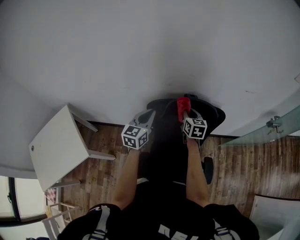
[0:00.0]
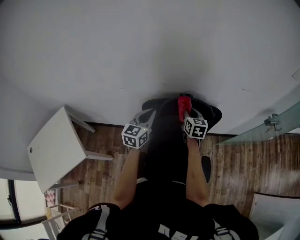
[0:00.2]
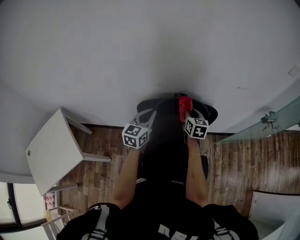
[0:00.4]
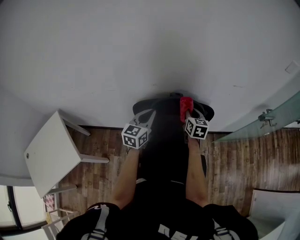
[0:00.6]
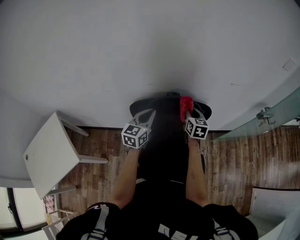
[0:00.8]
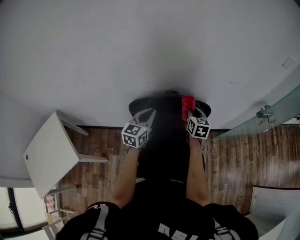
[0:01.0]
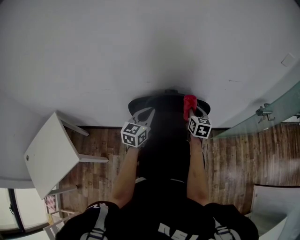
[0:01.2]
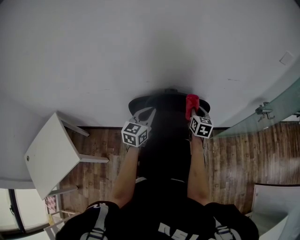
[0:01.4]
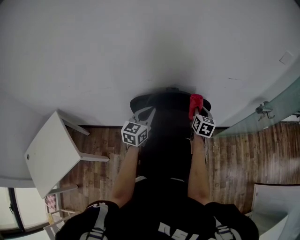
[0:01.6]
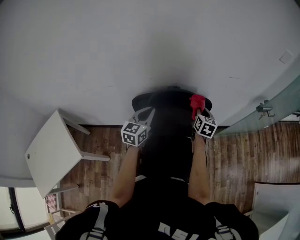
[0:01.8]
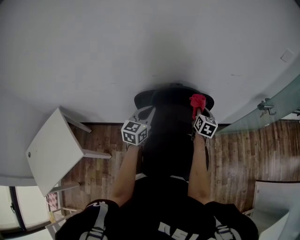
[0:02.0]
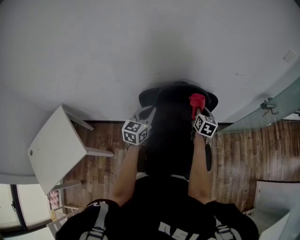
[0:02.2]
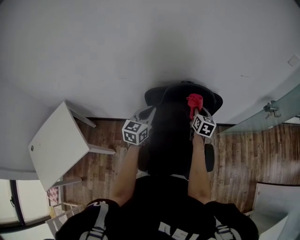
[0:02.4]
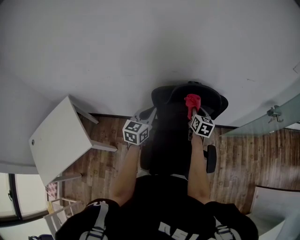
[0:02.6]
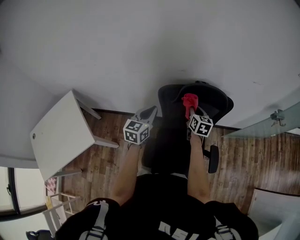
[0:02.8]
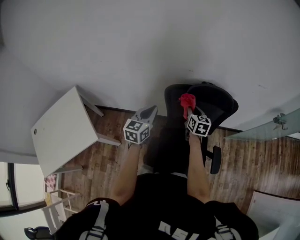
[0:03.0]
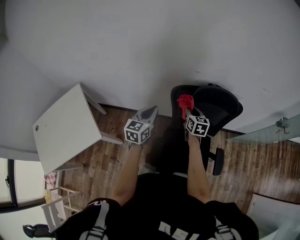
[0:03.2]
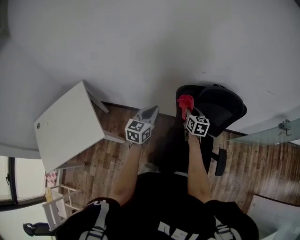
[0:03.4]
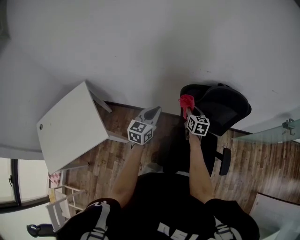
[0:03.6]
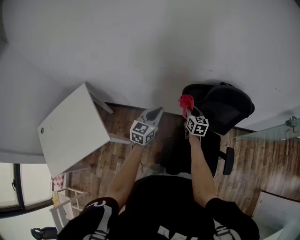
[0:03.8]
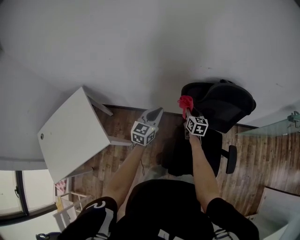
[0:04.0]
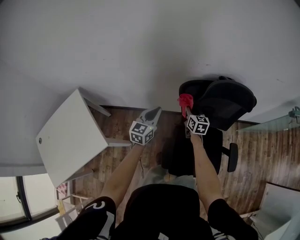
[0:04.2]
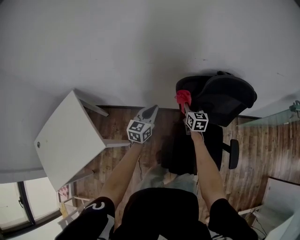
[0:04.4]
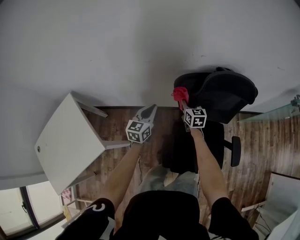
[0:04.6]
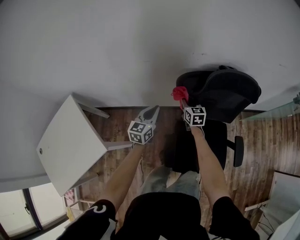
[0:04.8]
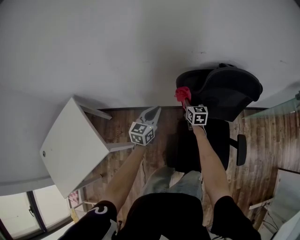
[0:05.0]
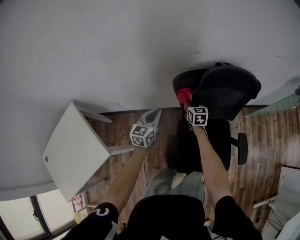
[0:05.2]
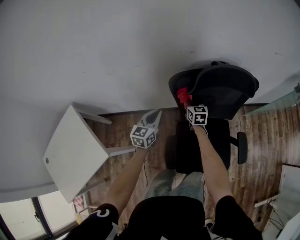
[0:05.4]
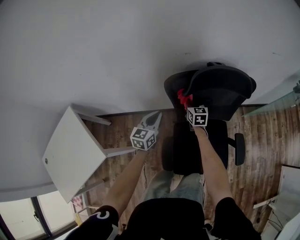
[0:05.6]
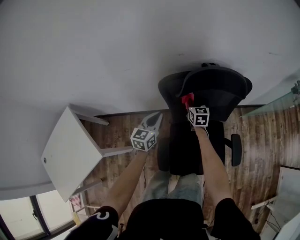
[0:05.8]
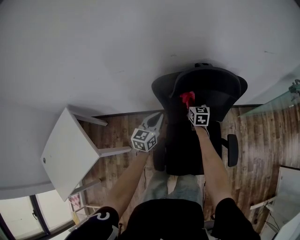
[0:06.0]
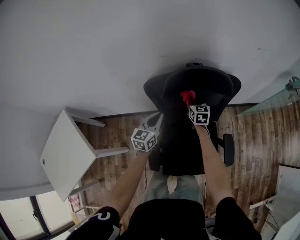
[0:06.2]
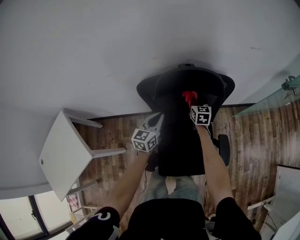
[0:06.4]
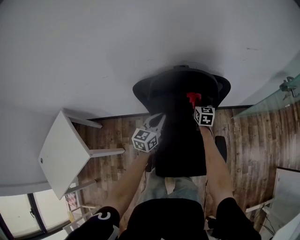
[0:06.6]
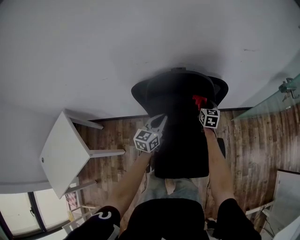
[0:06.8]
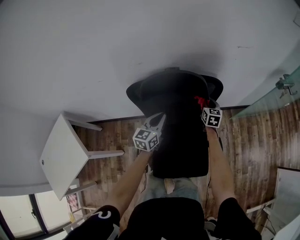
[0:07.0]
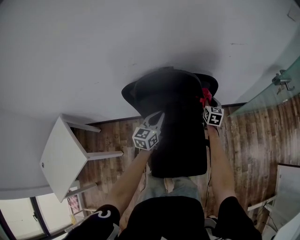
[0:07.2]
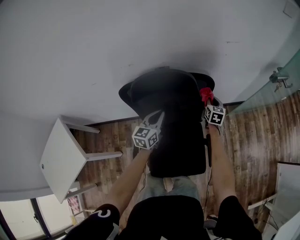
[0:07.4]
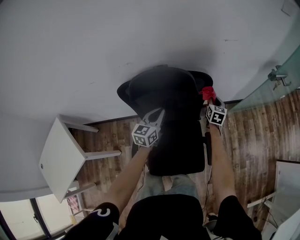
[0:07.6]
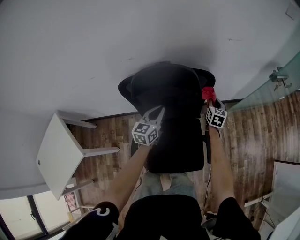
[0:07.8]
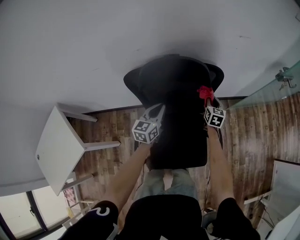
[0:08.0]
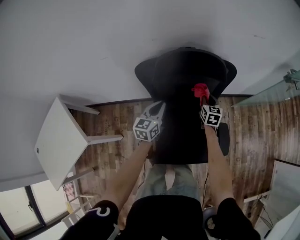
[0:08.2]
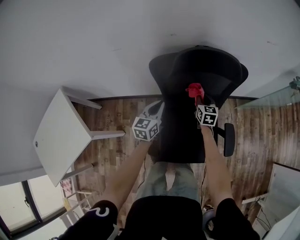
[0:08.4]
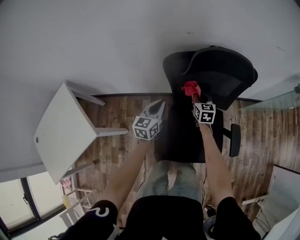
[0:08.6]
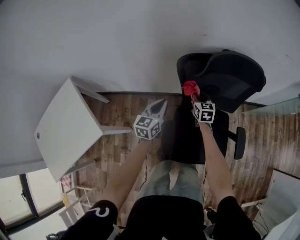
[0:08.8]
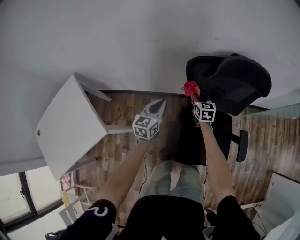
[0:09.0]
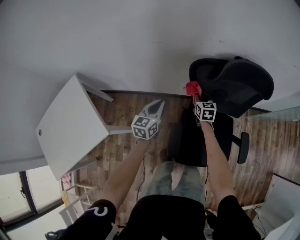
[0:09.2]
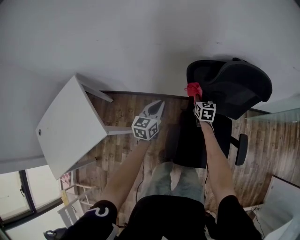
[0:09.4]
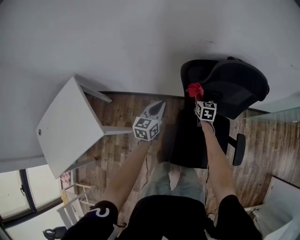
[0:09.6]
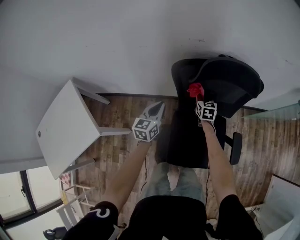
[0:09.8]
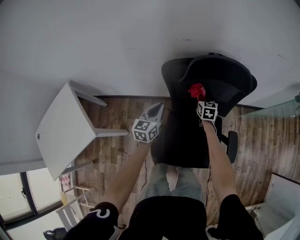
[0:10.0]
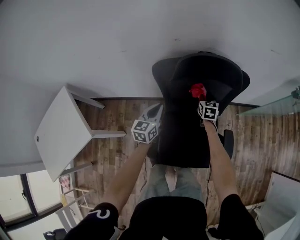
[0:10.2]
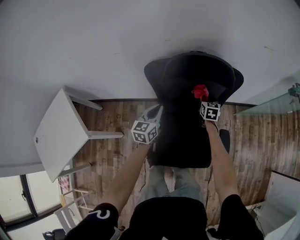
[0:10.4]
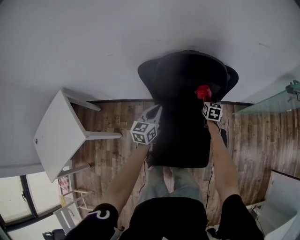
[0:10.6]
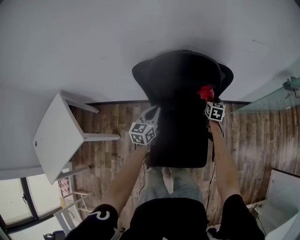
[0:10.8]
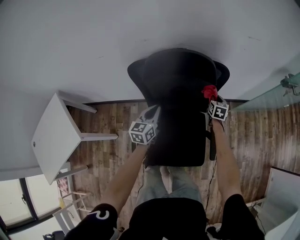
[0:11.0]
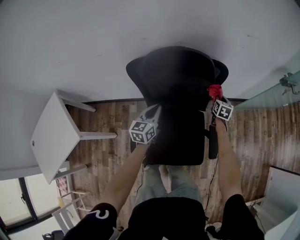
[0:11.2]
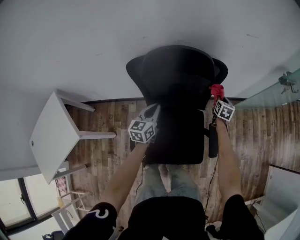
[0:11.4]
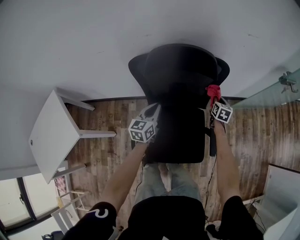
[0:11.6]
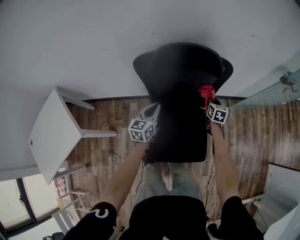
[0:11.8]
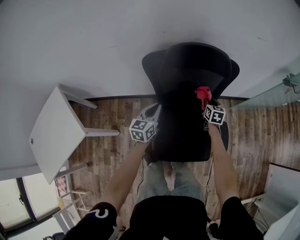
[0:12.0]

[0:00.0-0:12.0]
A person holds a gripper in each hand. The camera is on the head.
0:00.0 to 0:01.6: The left gripper moves to the right, roughly 10 cm. The right gripper heads to the right, covering some 15 cm.
0:01.6 to 0:03.0: The grippers both shift to the left and backward by some 20 cm.
0:03.0 to 0:04.4: Both grippers move downward and to the left, about 15 cm.
0:04.4 to 0:06.0: The two grippers go about 15 cm to the right.
0:06.0 to 0:07.6: The right gripper is displaced to the right by approximately 35 cm, while the left gripper goes approximately 20 cm to the right.
0:07.6 to 0:09.0: Both grippers travel together to the left, roughly 40 cm. The right gripper rotates approximately 30 degrees.
0:09.0 to 0:10.4: The two grippers go some 20 cm to the right.
0:10.4 to 0:12.0: The left gripper reaches about 10 cm to the right, then returns. The right gripper heads backward, covering about 5 cm, and moves roughly 20 cm to the right and comes back.

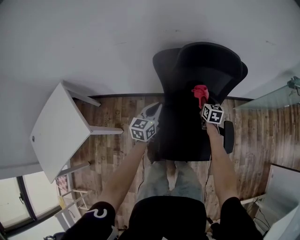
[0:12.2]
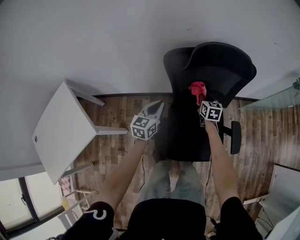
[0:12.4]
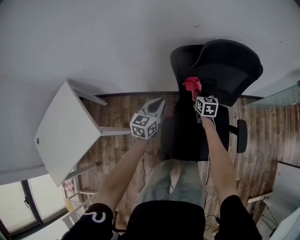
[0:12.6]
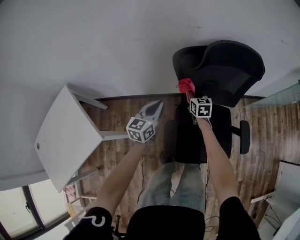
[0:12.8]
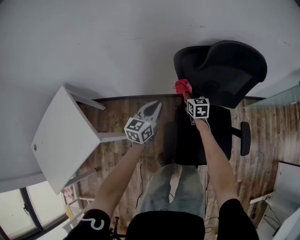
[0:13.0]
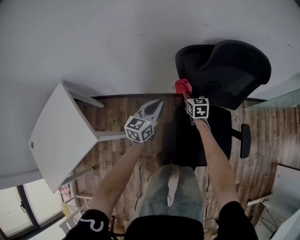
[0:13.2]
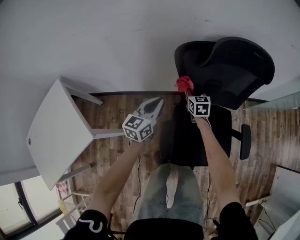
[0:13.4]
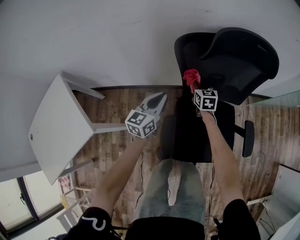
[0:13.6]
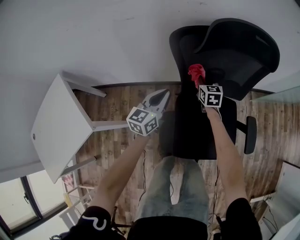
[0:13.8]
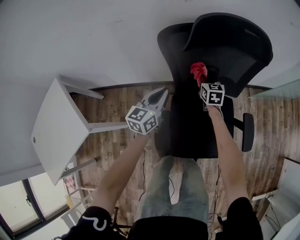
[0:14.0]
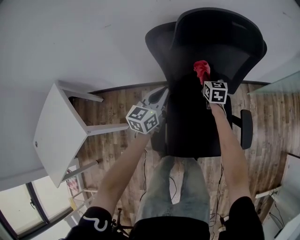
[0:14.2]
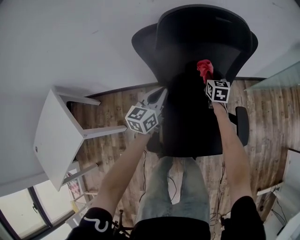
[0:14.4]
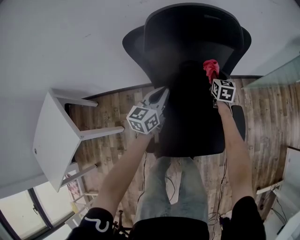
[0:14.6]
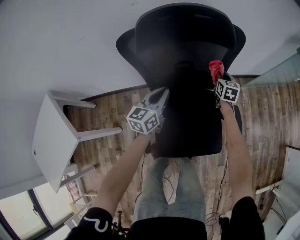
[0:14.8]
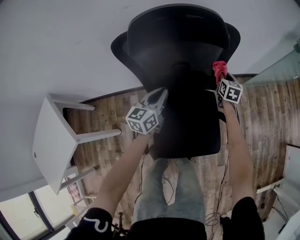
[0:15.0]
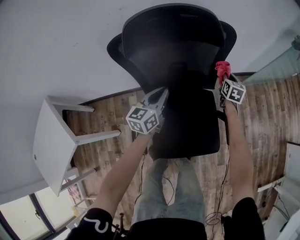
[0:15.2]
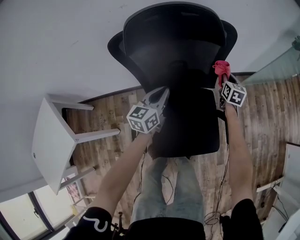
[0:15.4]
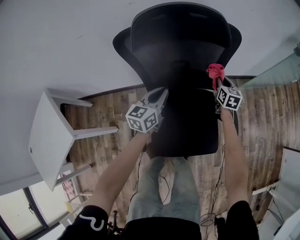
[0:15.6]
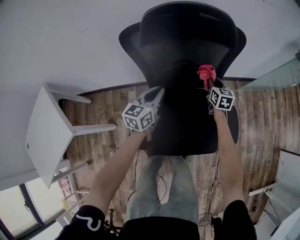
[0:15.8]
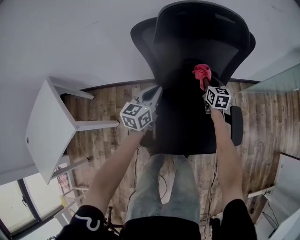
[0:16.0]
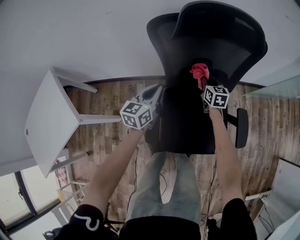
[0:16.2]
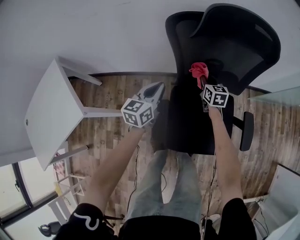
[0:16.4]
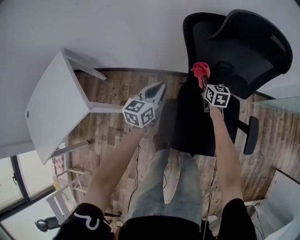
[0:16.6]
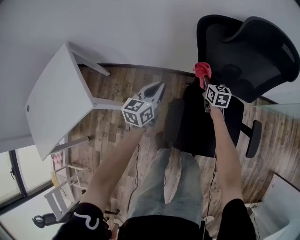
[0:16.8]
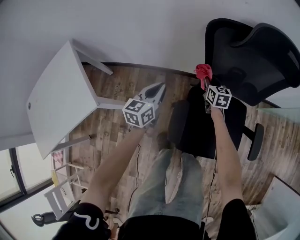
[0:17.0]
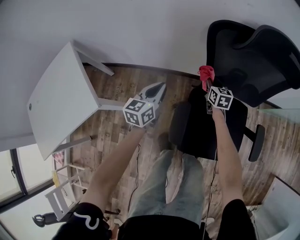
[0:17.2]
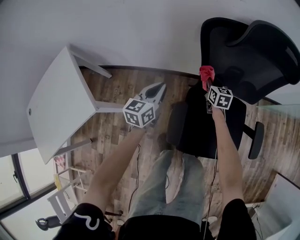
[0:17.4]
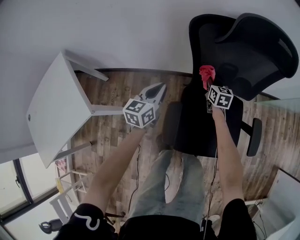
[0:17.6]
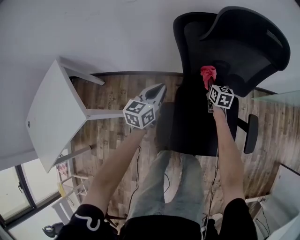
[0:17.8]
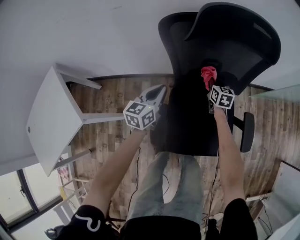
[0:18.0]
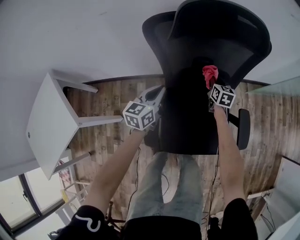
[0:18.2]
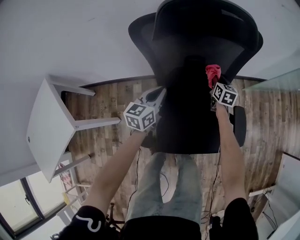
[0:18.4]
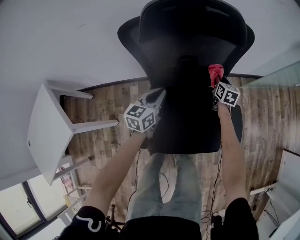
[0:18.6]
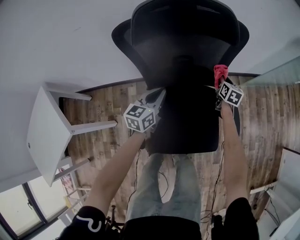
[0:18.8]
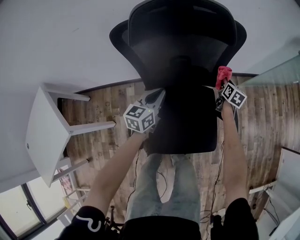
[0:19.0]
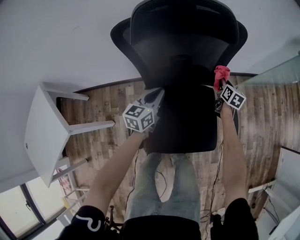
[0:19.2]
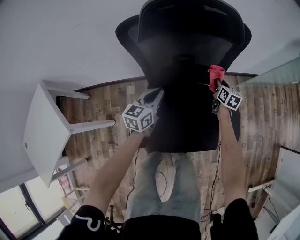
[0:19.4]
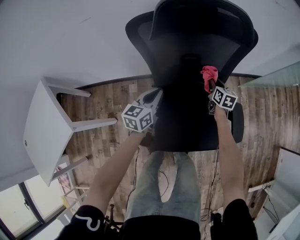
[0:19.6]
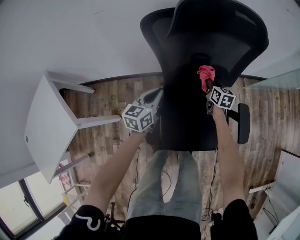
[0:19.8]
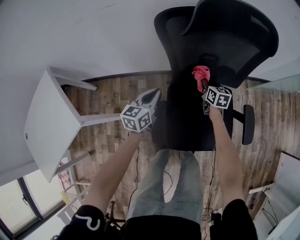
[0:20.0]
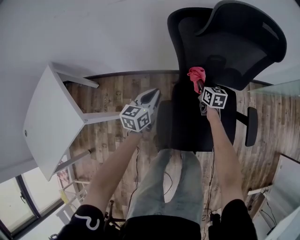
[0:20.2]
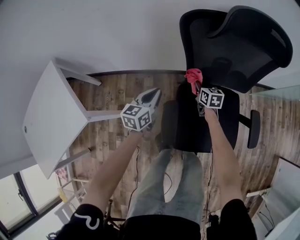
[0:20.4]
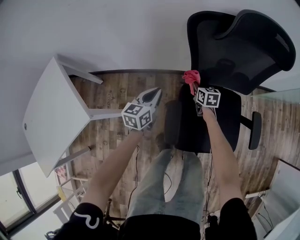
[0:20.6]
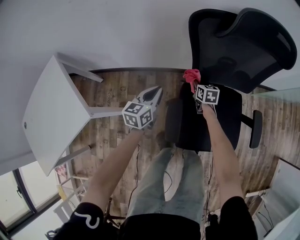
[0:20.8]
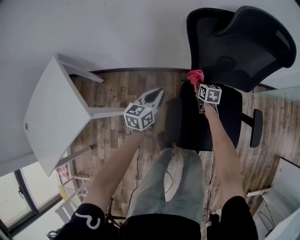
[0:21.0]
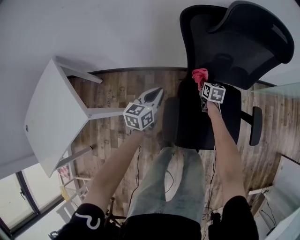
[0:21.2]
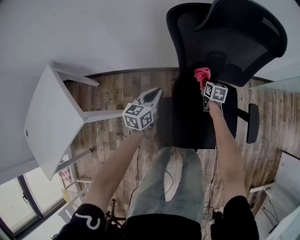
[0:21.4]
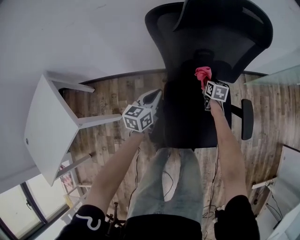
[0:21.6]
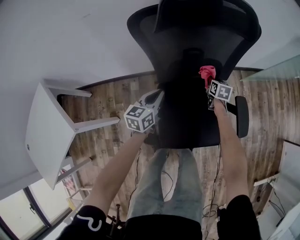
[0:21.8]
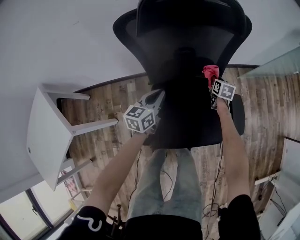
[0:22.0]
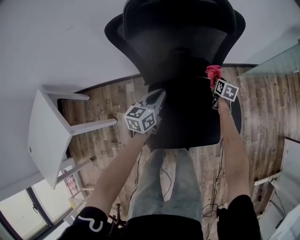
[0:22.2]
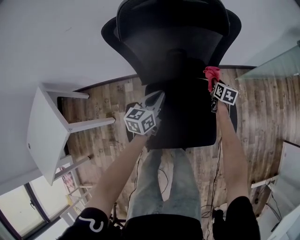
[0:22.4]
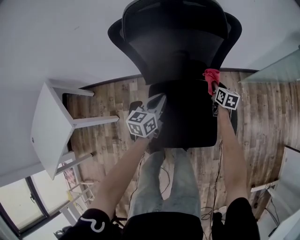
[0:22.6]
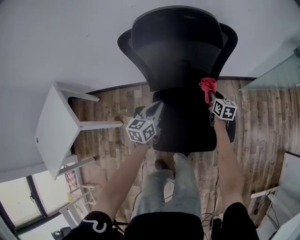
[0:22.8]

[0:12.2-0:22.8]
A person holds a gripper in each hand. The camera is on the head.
0:12.2 to 0:13.8: The left gripper goes roughly 5 cm to the left. Meanwhile the right gripper moves to the left, about 15 cm.
0:13.8 to 0:15.2: The left gripper travels to the right by approximately 20 cm; the right gripper moves to the right, about 35 cm, and rotates approximately 30 degrees.
0:15.2 to 0:16.8: The two grippers go about 35 cm to the left. The right gripper changes its angle by about 30 degrees.
0:16.8 to 0:18.2: Both grippers move to the right, some 20 cm.
0:18.2 to 0:19.8: The right gripper moves roughly 20 cm to the right and comes back, while the left gripper moves approximately 10 cm to the right and comes back.
0:19.8 to 0:21.2: The left gripper travels to the left by roughly 10 cm, while the right gripper travels to the left and downward by about 15 cm.
0:21.2 to 0:22.8: The grippers both shift to the right by approximately 25 cm.

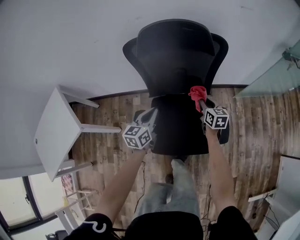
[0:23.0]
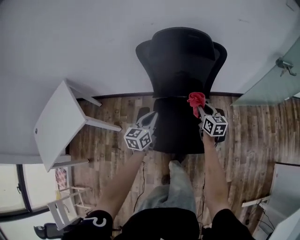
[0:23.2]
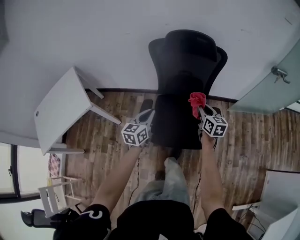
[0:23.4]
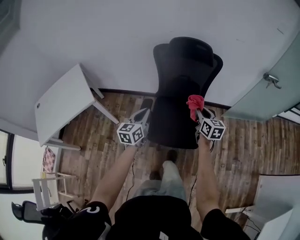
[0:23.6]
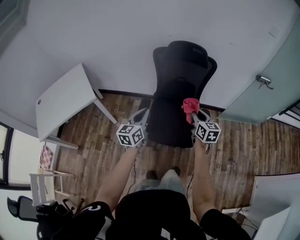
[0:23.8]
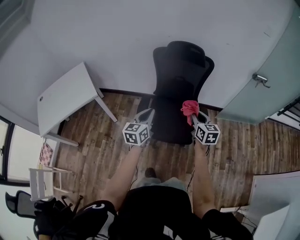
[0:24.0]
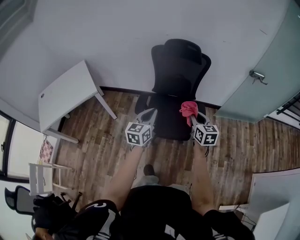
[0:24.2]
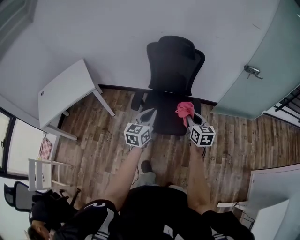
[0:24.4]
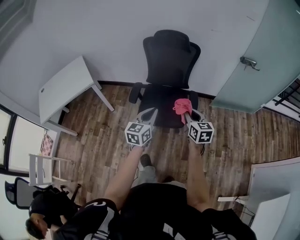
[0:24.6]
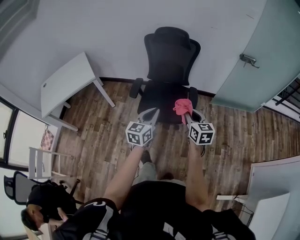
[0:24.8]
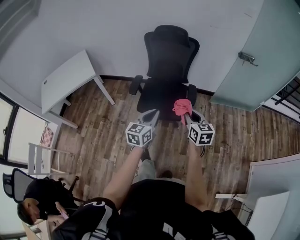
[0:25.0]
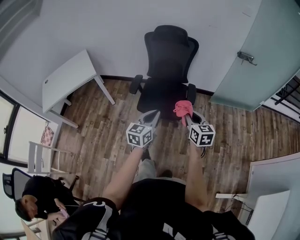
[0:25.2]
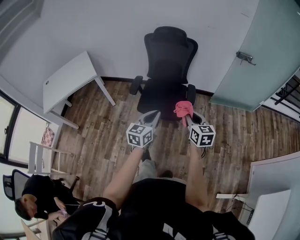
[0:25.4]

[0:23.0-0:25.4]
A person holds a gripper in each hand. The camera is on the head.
0:23.0 to 0:24.2: Both grippers move backward and upward, some 40 cm.
0:24.2 to 0:25.4: The right gripper goes approximately 20 cm backward, while the left gripper travels backward and to the right by roughly 25 cm.
